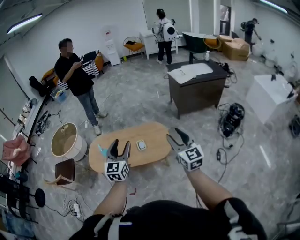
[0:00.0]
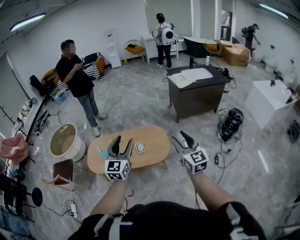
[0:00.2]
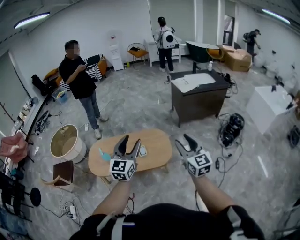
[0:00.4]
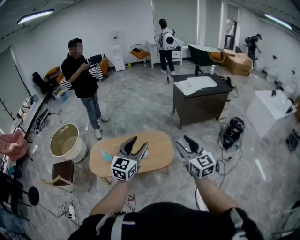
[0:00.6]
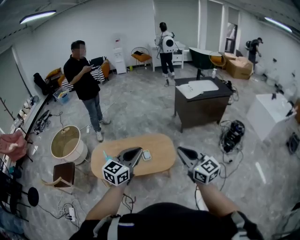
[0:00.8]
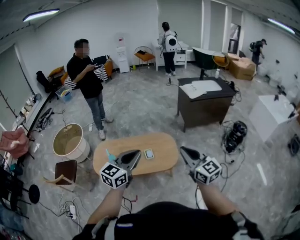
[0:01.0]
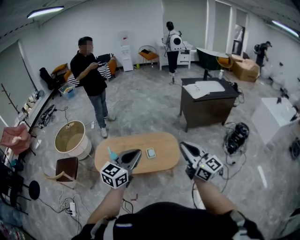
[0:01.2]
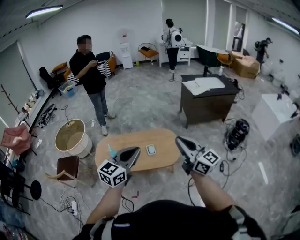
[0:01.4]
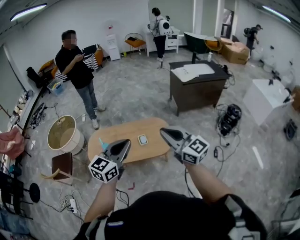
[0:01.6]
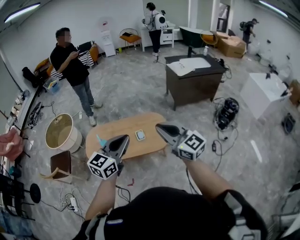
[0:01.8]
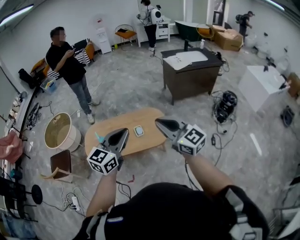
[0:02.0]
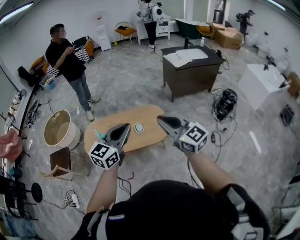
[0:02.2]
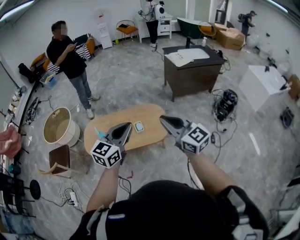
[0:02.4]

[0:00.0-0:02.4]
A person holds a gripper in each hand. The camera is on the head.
0:00.0 to 0:01.2: The right gripper shifts some 10 cm upward and to the left, changes its angle by some 30 degrees, and closes up; the left gripper travels upward and backward by approximately 10 cm, swivels about 30 degrees, and closes its fingers.
0:01.2 to 0:02.4: The grippers move only a little.

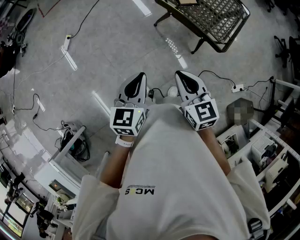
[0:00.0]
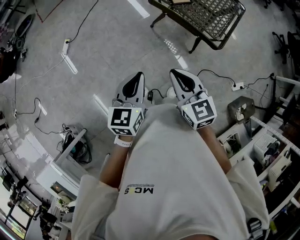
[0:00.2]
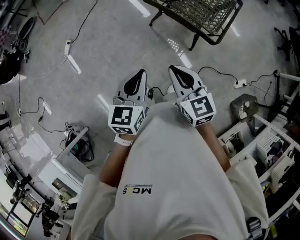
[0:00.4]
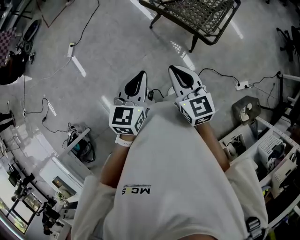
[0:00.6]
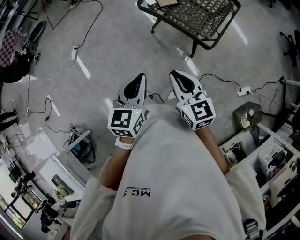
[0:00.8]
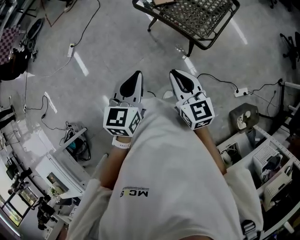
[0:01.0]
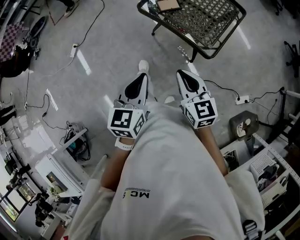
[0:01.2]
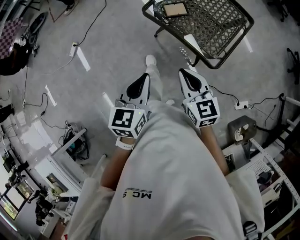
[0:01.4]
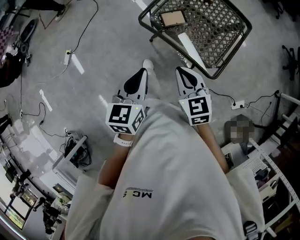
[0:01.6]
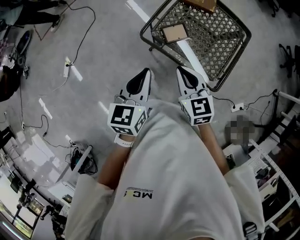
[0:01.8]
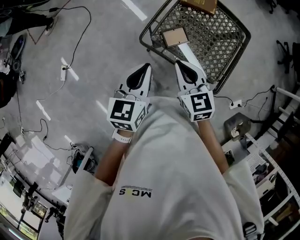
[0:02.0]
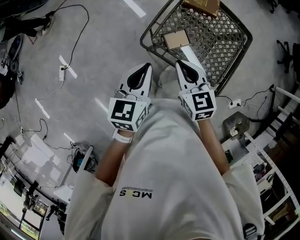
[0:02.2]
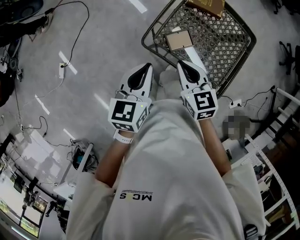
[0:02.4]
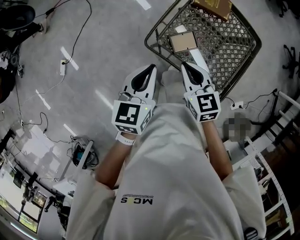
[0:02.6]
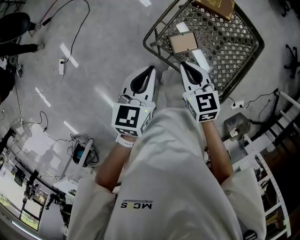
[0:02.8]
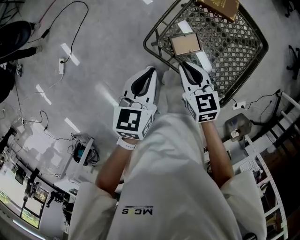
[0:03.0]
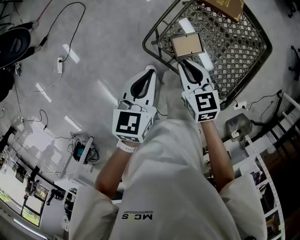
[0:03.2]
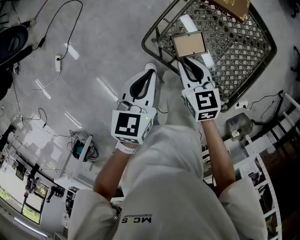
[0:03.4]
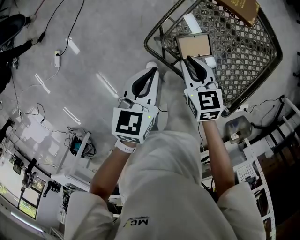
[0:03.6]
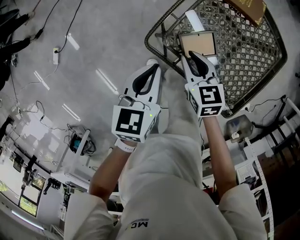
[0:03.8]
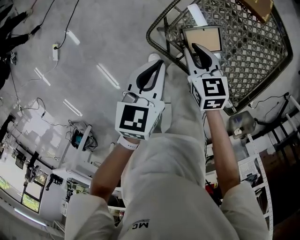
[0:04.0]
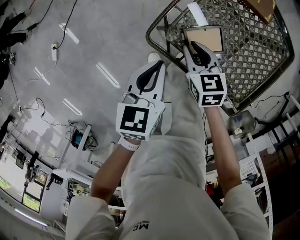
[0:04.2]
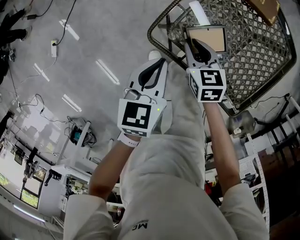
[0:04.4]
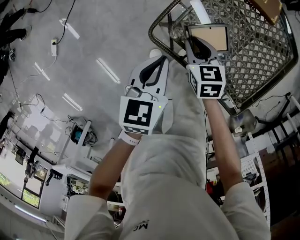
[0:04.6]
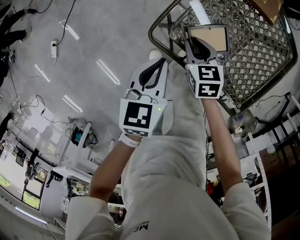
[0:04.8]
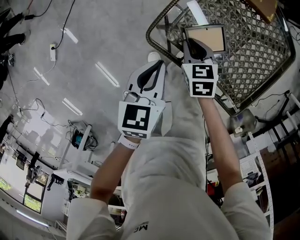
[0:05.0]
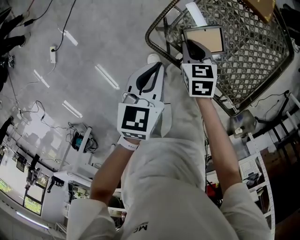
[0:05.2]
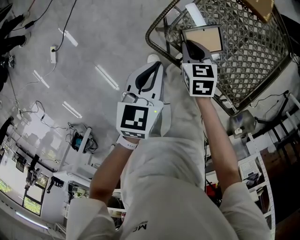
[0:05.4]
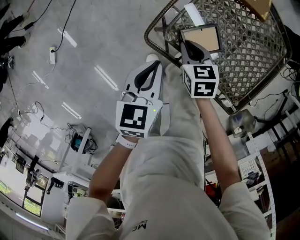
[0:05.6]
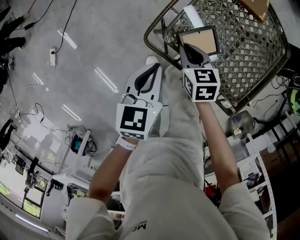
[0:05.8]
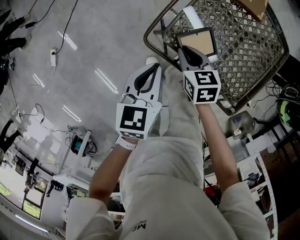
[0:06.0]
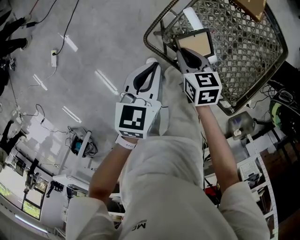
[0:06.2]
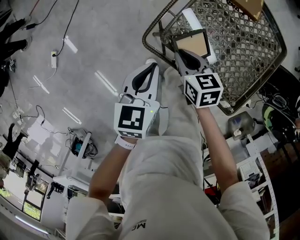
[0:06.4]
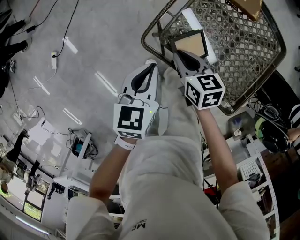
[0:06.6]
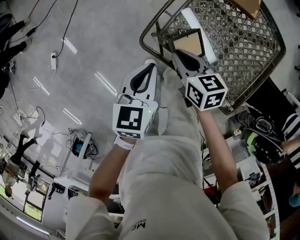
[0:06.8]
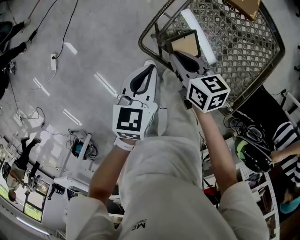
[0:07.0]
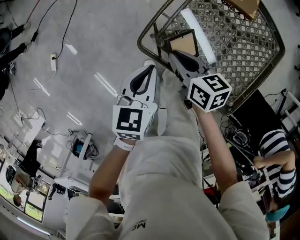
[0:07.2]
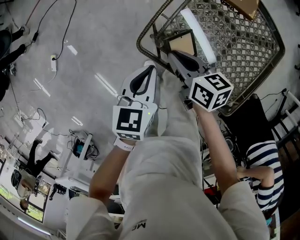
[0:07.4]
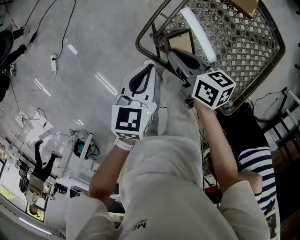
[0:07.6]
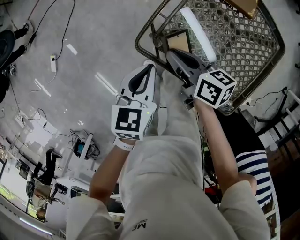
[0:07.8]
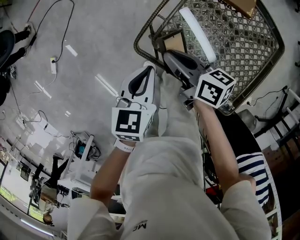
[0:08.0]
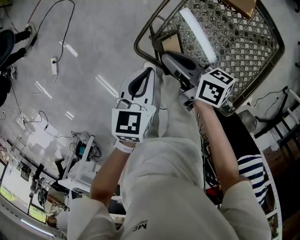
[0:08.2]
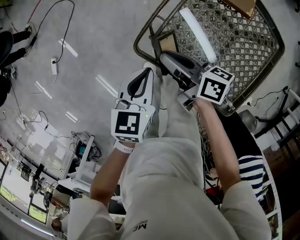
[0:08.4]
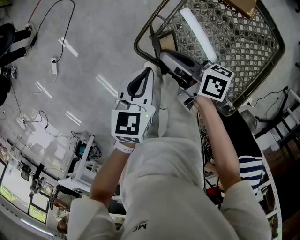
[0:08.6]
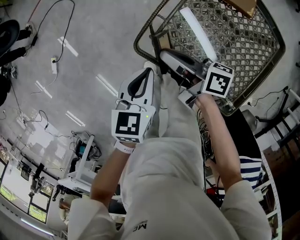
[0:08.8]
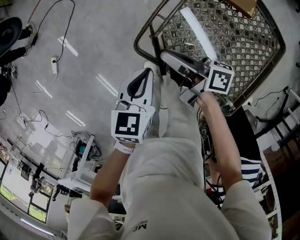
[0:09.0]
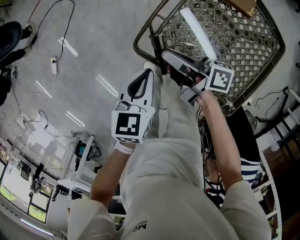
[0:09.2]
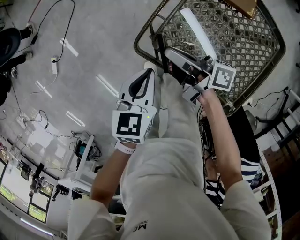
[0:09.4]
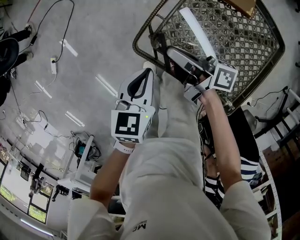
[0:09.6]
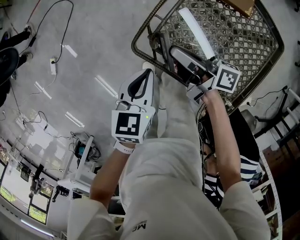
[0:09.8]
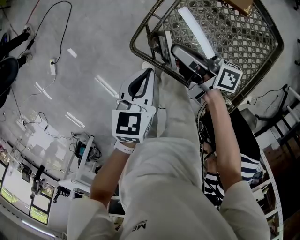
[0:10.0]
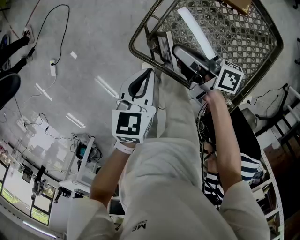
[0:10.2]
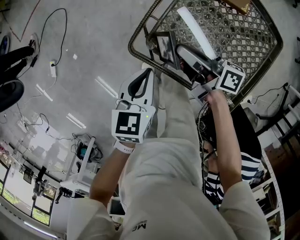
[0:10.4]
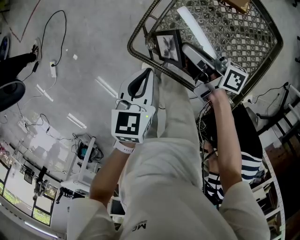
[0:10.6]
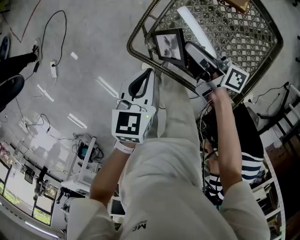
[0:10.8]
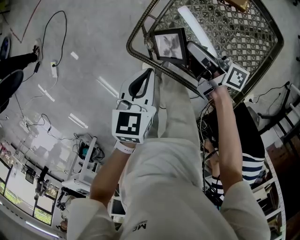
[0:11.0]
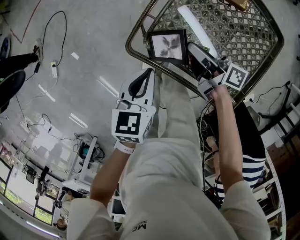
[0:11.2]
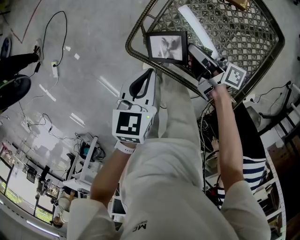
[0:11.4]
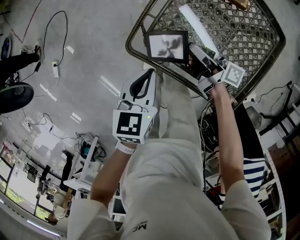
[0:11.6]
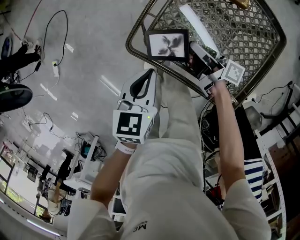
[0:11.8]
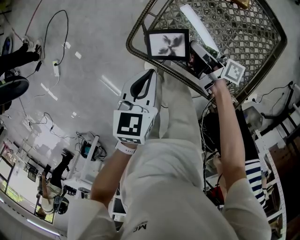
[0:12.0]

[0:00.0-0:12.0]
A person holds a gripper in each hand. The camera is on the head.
0:00.0 to 0:01.6: Both grippers move forward and to the right, about 25 cm.
0:01.6 to 0:03.0: The two grippers go some 25 cm forward.
0:03.0 to 0:04.4: Both grippers travel together downward, about 15 cm.
0:04.4 to 0:06.0: The grippers move only a little.
0:06.0 to 0:07.6: The right gripper travels upward by some 5 cm, and turns by about 30 degrees.
0:07.6 to 0:09.0: The right gripper rotates roughly 40 degrees.
0:09.0 to 0:10.4: The right gripper moves to the right, roughly 5 cm.
0:10.4 to 0:12.0: The right gripper goes approximately 10 cm downward and to the right.

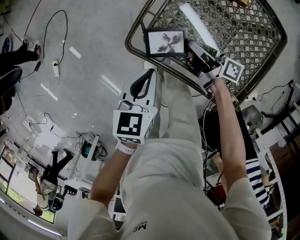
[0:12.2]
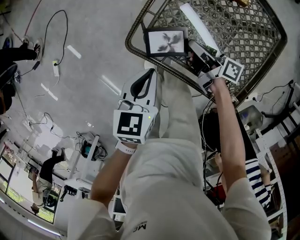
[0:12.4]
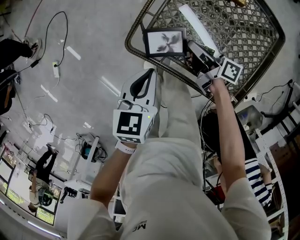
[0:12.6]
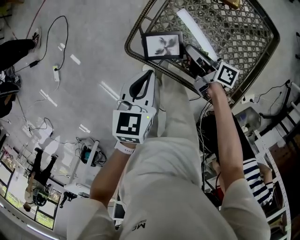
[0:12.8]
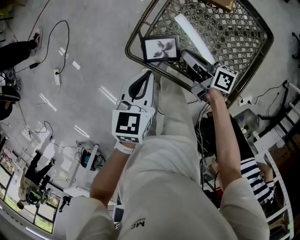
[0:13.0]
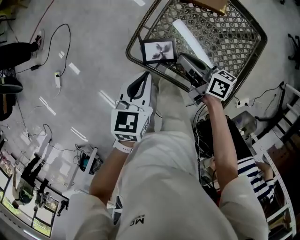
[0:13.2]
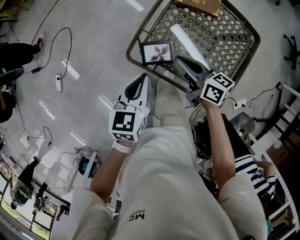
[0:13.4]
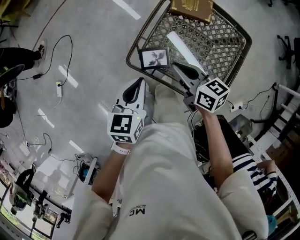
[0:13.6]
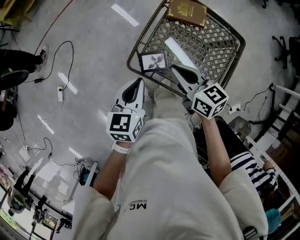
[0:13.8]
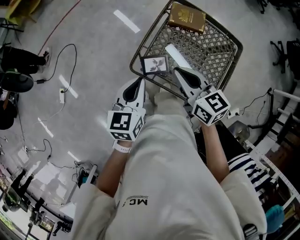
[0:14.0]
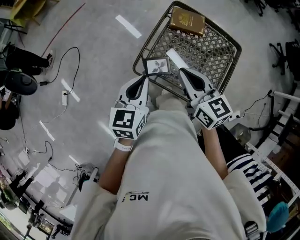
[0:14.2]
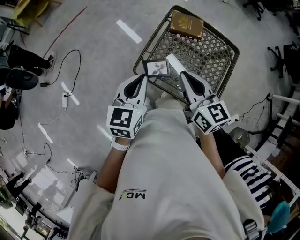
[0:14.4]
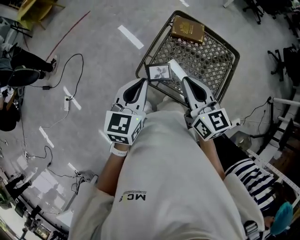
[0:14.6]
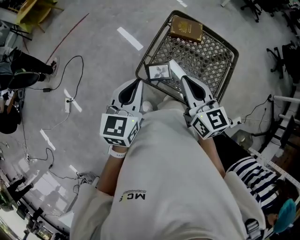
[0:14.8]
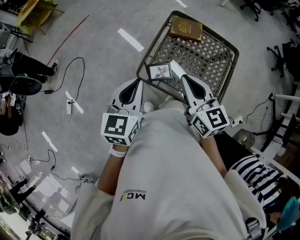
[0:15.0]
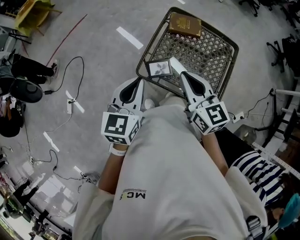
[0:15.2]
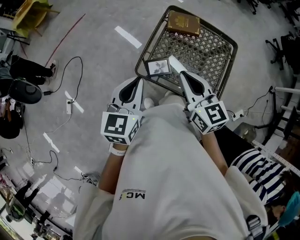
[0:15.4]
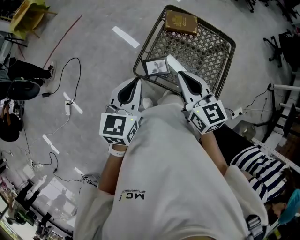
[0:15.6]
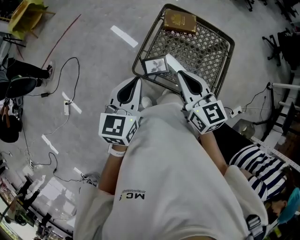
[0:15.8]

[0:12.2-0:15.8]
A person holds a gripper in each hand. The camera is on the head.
0:12.2 to 0:14.0: The right gripper moves upward, roughly 30 cm, and twists roughly 60 degrees counterclockwise, seen from behind. The left gripper shifts approximately 20 cm upward.
0:14.0 to 0:15.8: The left gripper is displaced upward by approximately 10 cm. Meanwhile the right gripper is displaced upward and backward by some 10 cm.

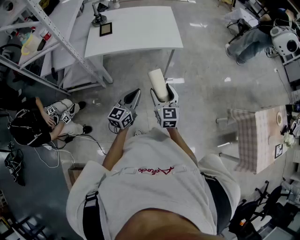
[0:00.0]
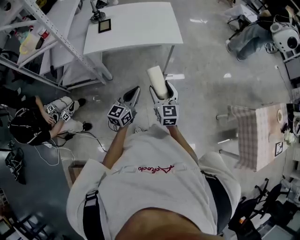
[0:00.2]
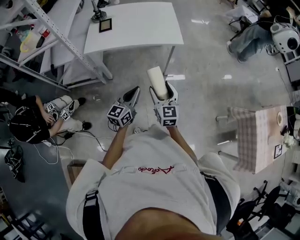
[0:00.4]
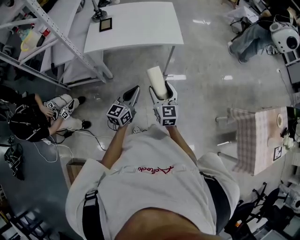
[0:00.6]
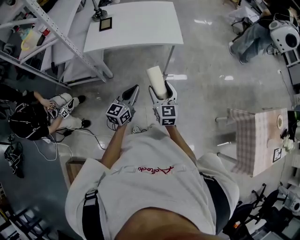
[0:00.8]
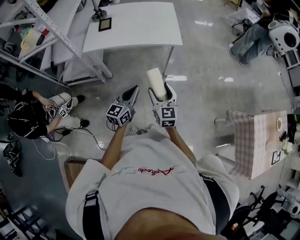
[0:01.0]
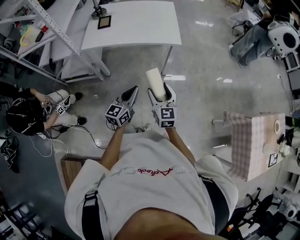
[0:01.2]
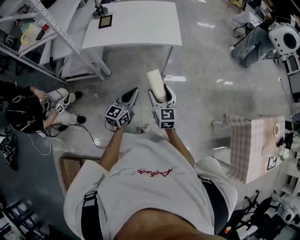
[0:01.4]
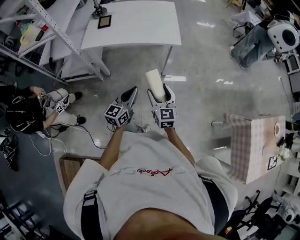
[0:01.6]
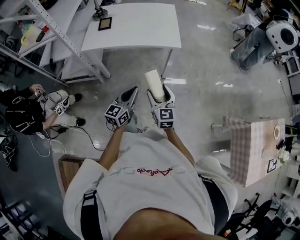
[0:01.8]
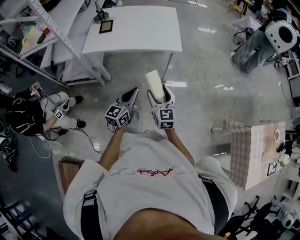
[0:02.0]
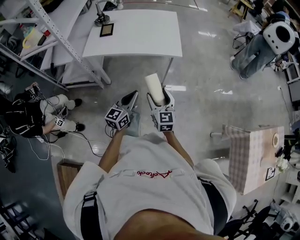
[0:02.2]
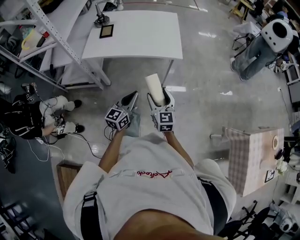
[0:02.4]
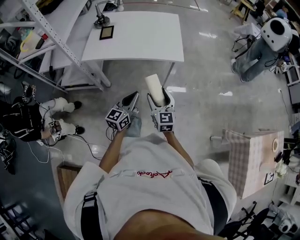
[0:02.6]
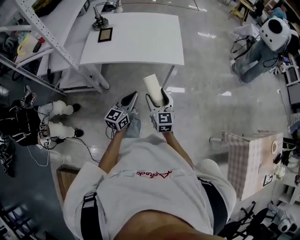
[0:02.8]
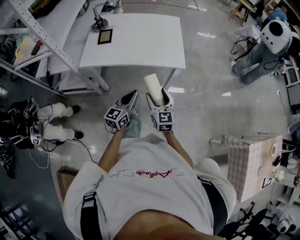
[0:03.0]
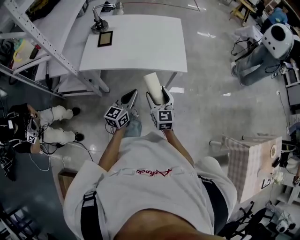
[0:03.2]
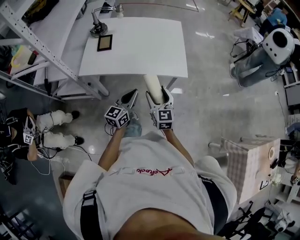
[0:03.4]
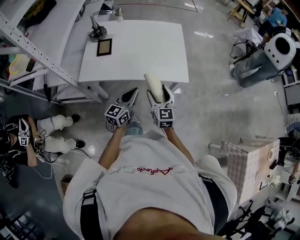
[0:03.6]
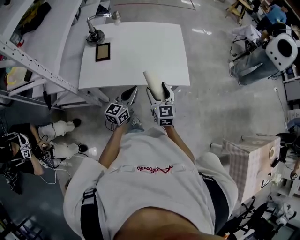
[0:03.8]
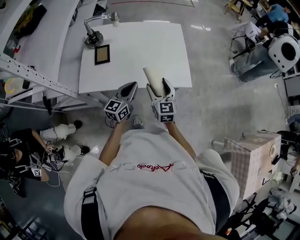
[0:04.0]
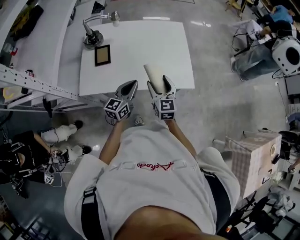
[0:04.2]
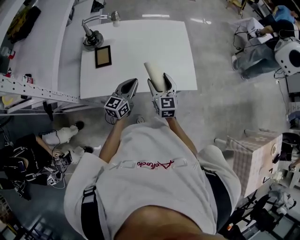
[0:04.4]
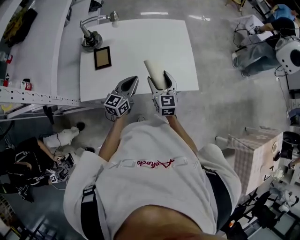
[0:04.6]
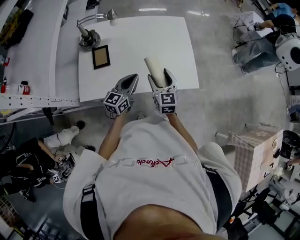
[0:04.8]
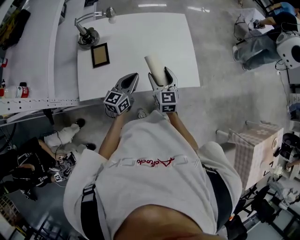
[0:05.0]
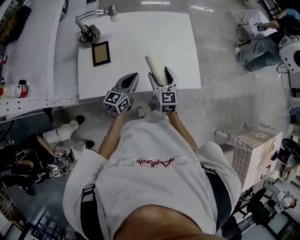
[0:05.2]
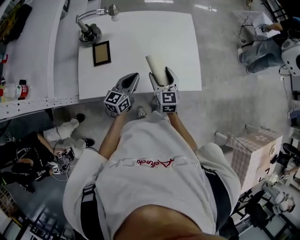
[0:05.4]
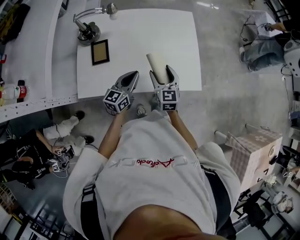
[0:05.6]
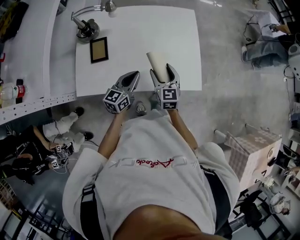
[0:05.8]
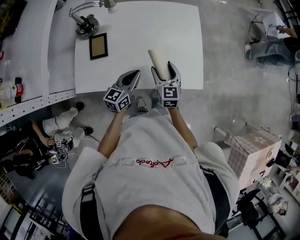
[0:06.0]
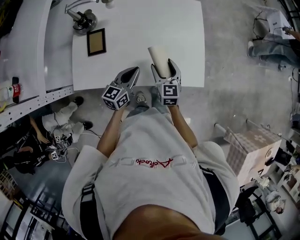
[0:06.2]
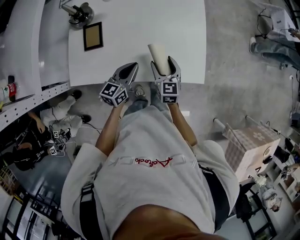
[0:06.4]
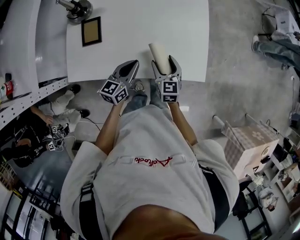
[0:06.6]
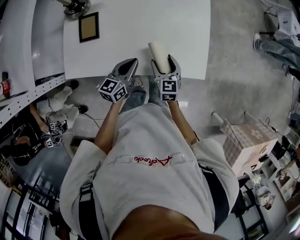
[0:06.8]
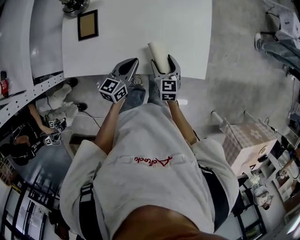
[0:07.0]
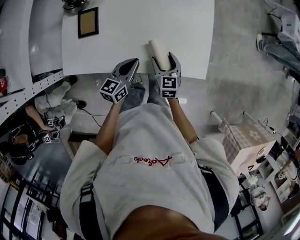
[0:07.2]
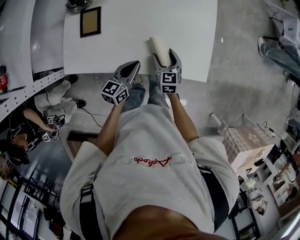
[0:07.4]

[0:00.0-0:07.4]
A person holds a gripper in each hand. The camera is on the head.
0:00.0 to 0:01.4: The right gripper shifts by approximately 5 cm. Meanwhile the left gripper shifts by approximately 5 cm.
0:01.4 to 0:03.0: The two grippers go about 15 cm forward.
0:03.0 to 0:04.4: Both grippers travel together forward and to the left, some 30 cm.
0:04.4 to 0:06.0: The right gripper goes about 10 cm forward and downward, while the left gripper heads forward, covering about 5 cm.
0:06.0 to 0:07.4: The left gripper heads downward, covering some 5 cm, while the right gripper goes about 10 cm downward.
